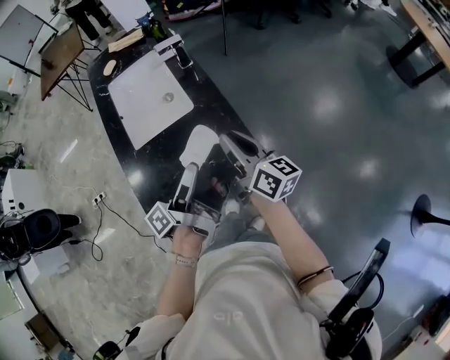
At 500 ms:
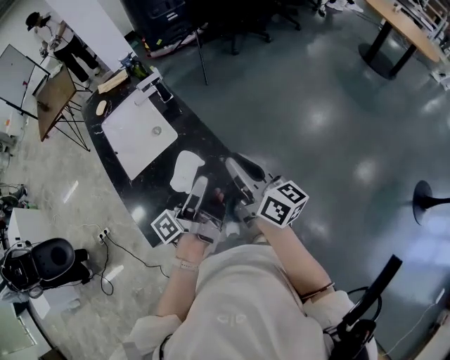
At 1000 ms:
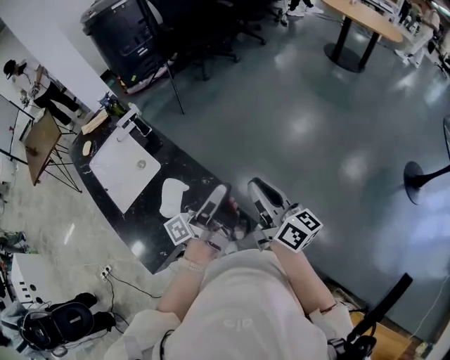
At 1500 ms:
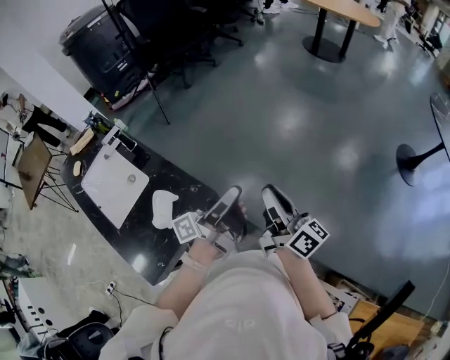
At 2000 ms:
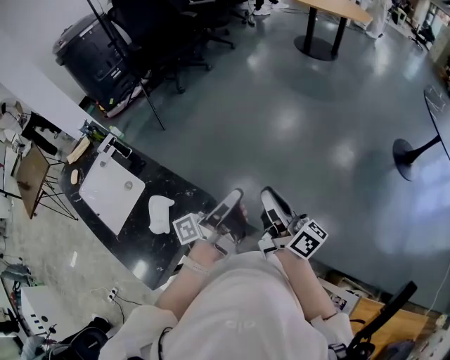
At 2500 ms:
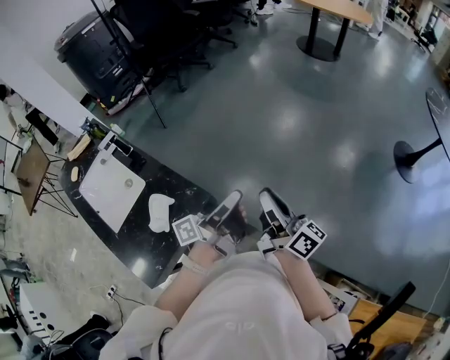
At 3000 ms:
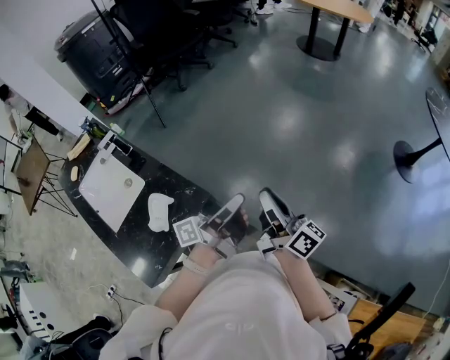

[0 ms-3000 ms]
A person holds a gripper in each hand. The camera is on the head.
0 ms to 1500 ms: The right gripper changes place by some 30 cm, and swivels roughly 40 degrees.

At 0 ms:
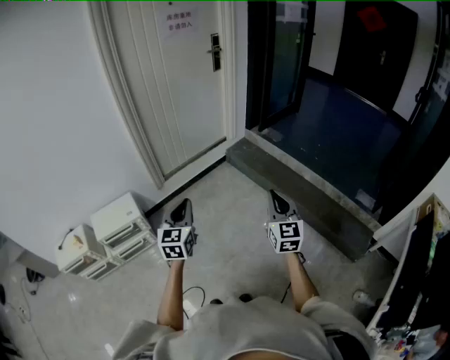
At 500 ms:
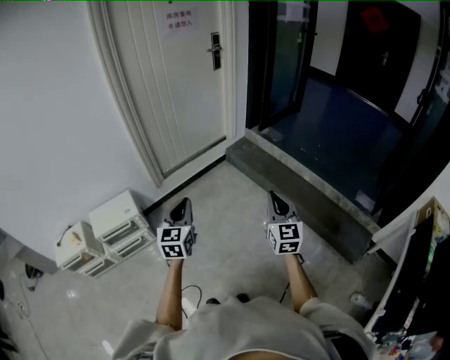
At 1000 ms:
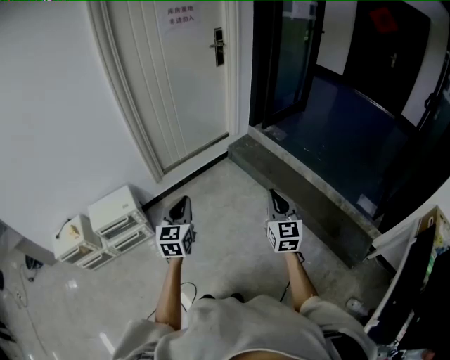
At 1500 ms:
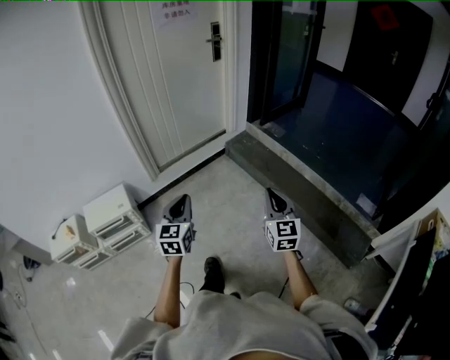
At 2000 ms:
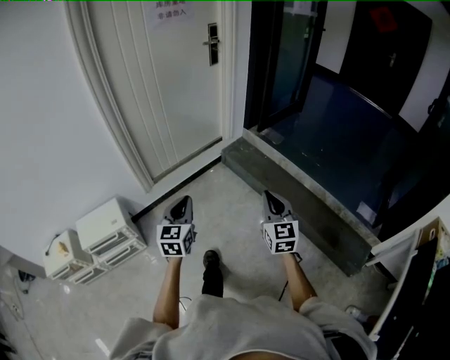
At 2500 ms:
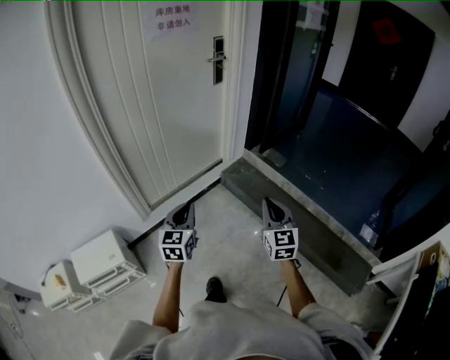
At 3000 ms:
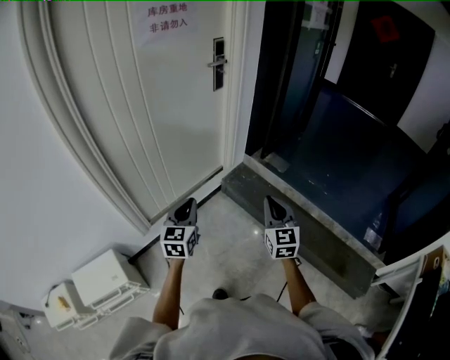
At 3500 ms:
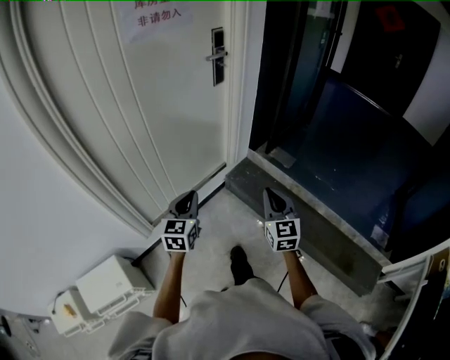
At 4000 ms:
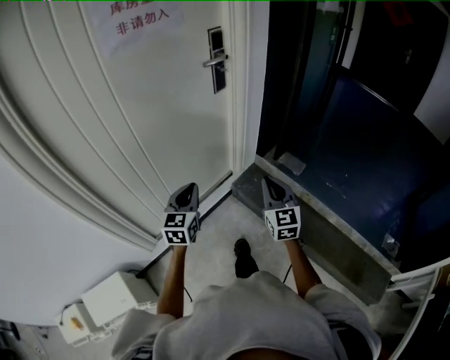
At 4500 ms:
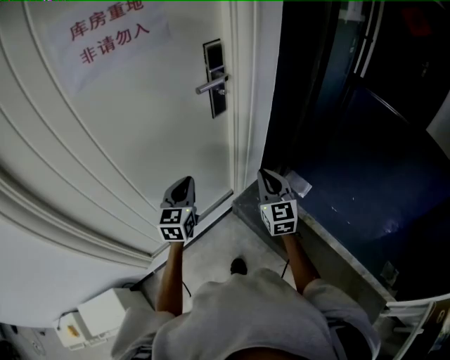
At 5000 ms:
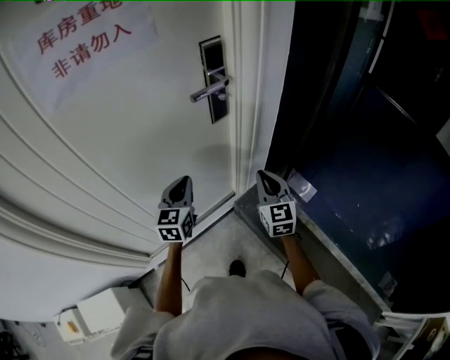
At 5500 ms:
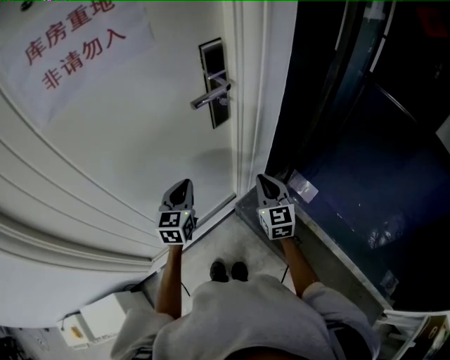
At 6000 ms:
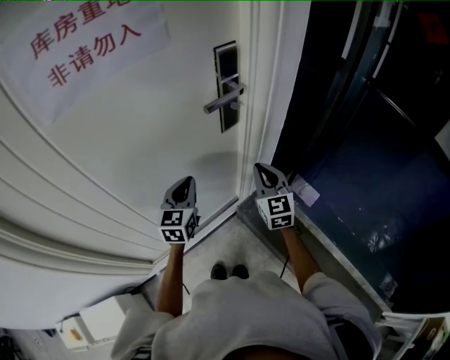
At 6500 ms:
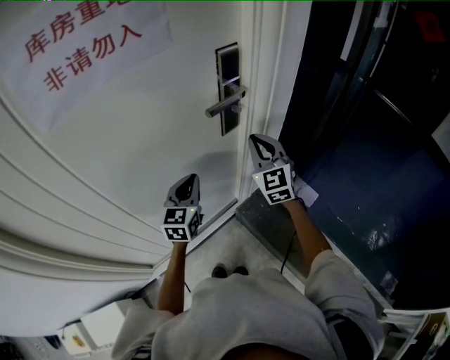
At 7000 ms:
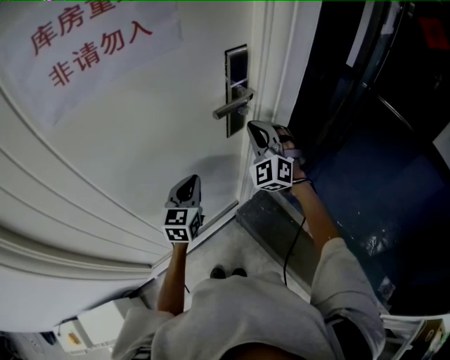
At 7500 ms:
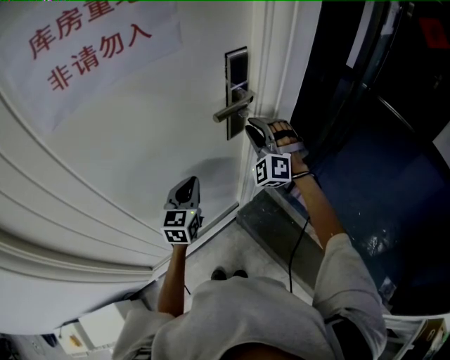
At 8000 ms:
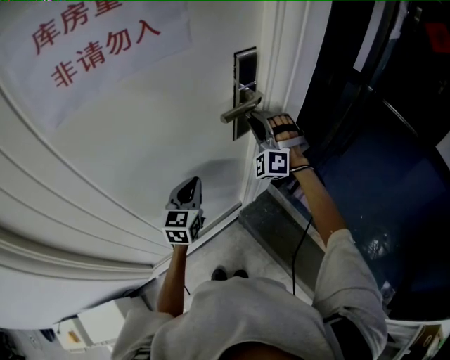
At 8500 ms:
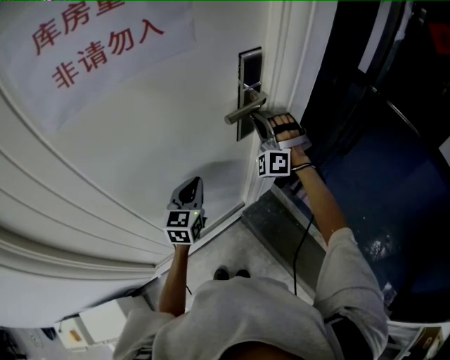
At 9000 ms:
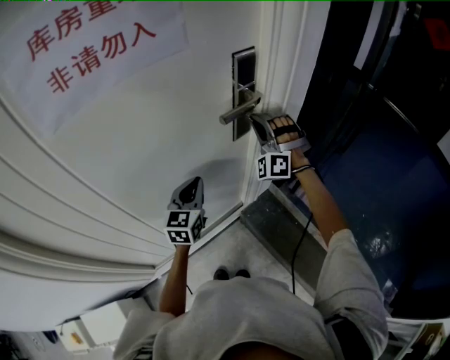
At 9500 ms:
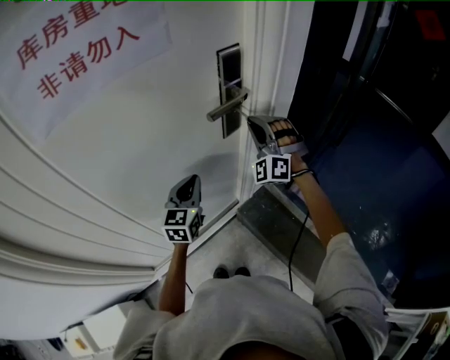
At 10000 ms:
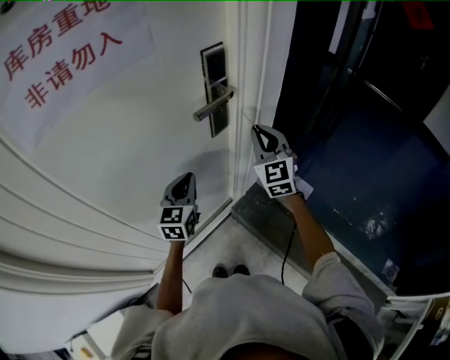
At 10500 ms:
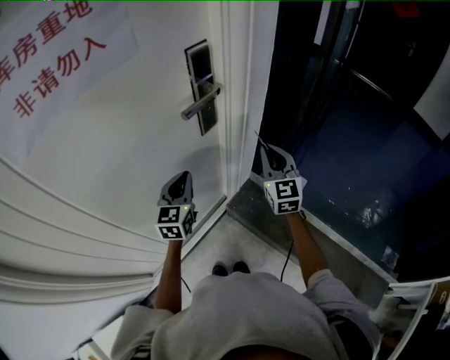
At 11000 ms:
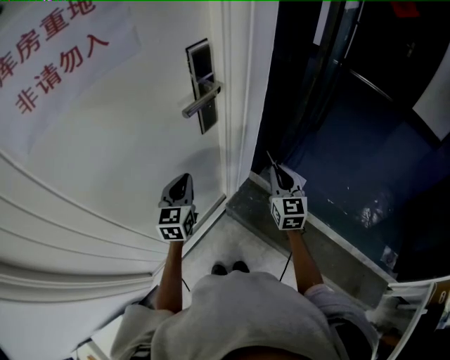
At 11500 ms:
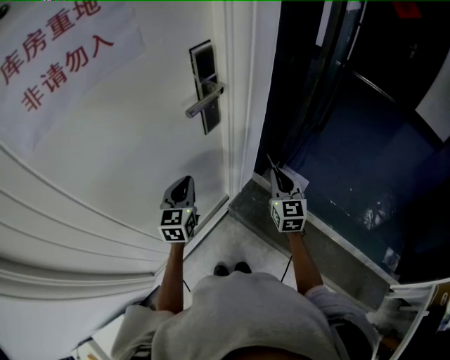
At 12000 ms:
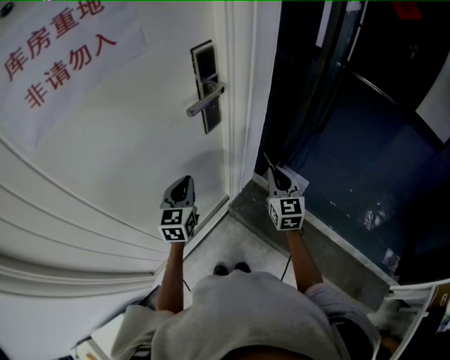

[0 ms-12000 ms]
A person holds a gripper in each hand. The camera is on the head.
0 ms to 2000 ms: Both grippers travel together forward, approximately 15 cm.
2000 ms to 4000 ms: The two grippers travel together, forward, some 60 cm.
4000 ms to 6000 ms: Both grippers move forward, some 35 cm.
6000 ms to 8000 ms: The right gripper is displaced forward and upward by about 15 cm, rolls counterclockwise, seen from behind, by roughly 70 degrees, and opens.
8000 ms to 10000 ms: The right gripper heads to the right and backward, covering some 10 cm, rolls clockwise, seen from behind, by about 60 degrees, and closes its fingers.
10000 ms to 12000 ms: The right gripper goes approximately 15 cm downward, backward and to the right, and rotates roughly 20 degrees.

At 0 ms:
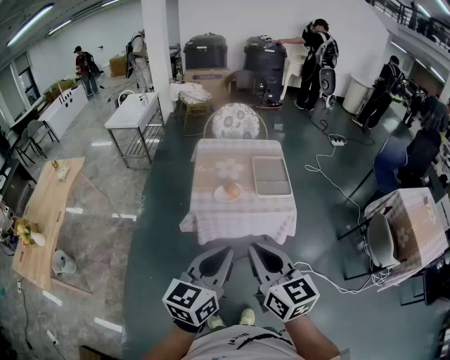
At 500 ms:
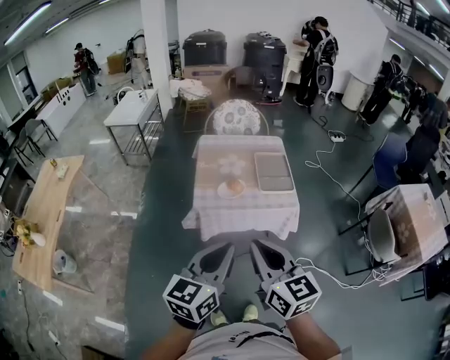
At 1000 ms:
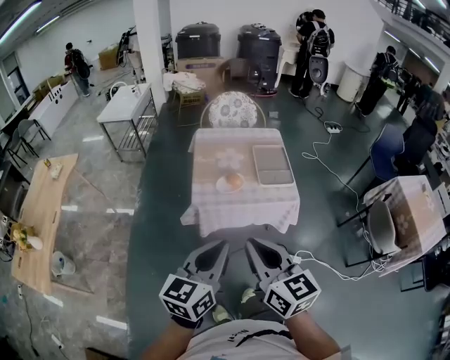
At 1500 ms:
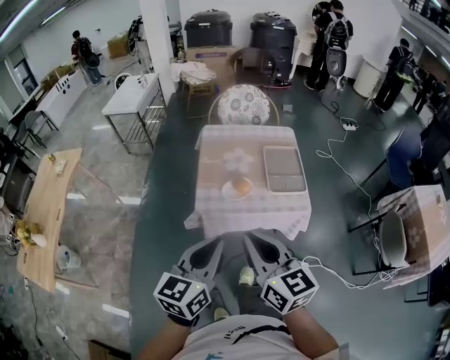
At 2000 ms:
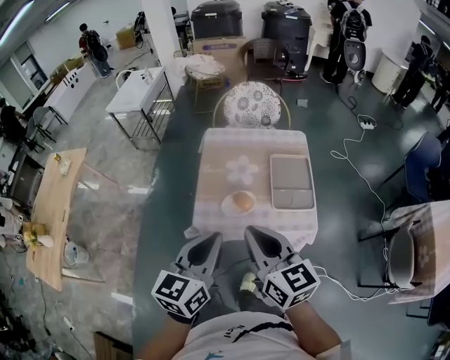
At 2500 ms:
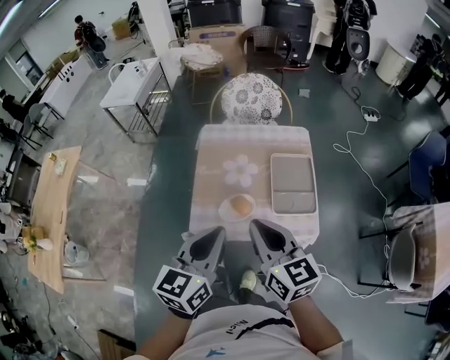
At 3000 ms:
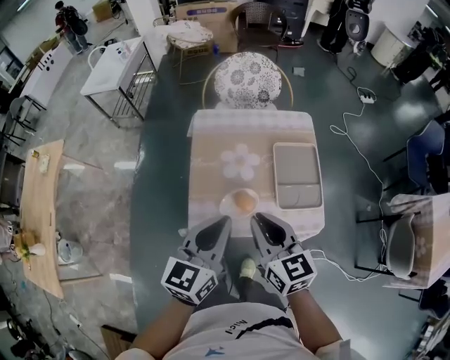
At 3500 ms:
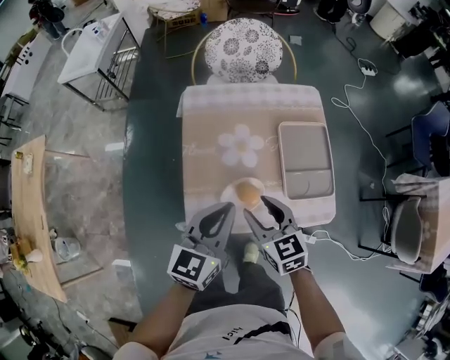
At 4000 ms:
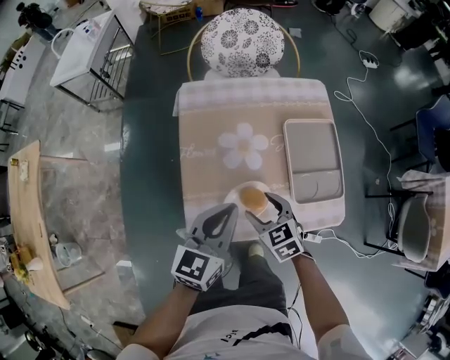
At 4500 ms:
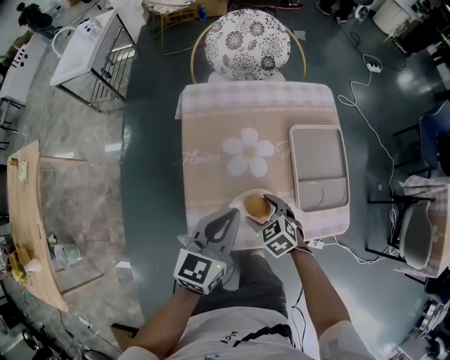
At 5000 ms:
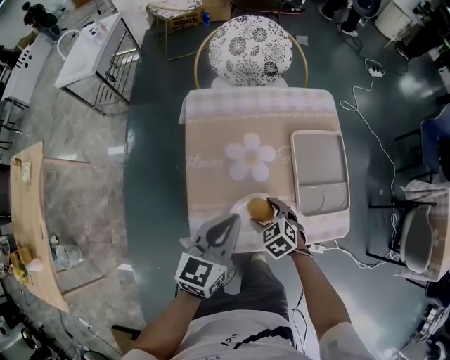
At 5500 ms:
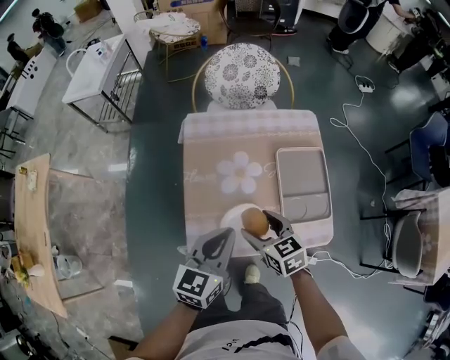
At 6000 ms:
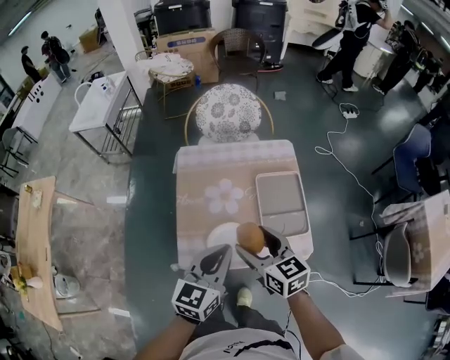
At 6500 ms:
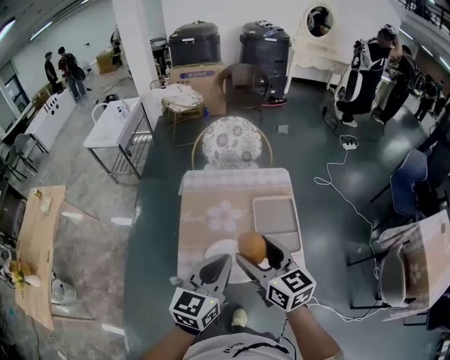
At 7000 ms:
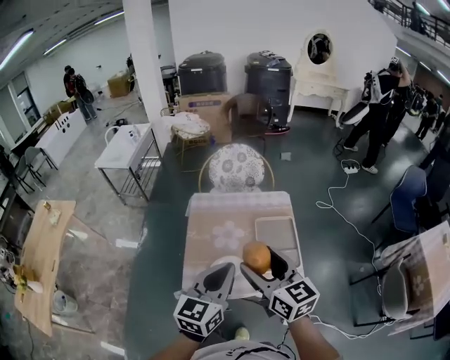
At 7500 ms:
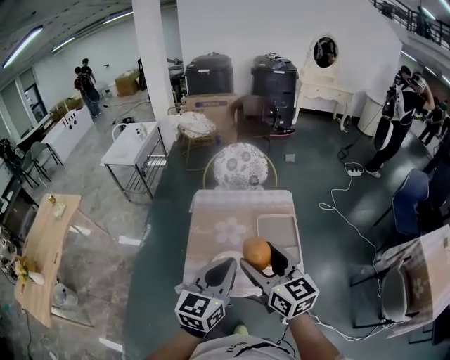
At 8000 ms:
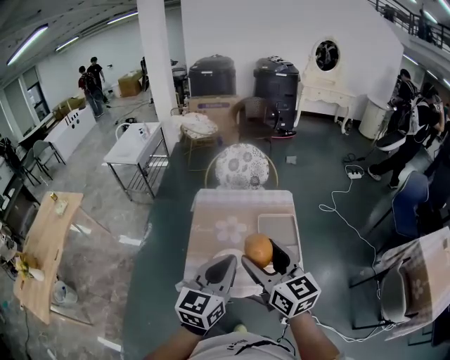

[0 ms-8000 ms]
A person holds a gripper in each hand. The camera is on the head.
0 ms to 2000 ms: The grippers both shift forward by about 25 cm.
2000 ms to 4000 ms: The grippers both shift downward and forward by approximately 35 cm. The right gripper tips its fingers downward by some 40 degrees, and opens its fingers.
4000 ms to 6000 ms: The right gripper moves upward, some 20 cm, and rotates roughly 30 degrees. The left gripper moves upward, backward and to the right, about 15 cm.
6000 ms to 8000 ms: Both grippers travel together upward and backward, some 20 cm. The right gripper rotates roughly 20 degrees.

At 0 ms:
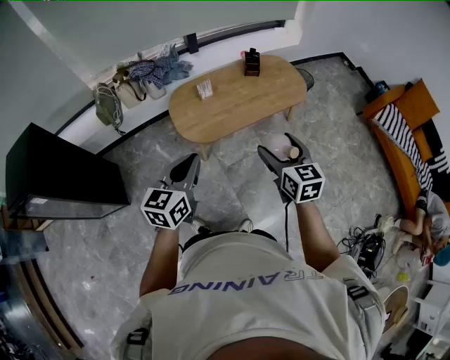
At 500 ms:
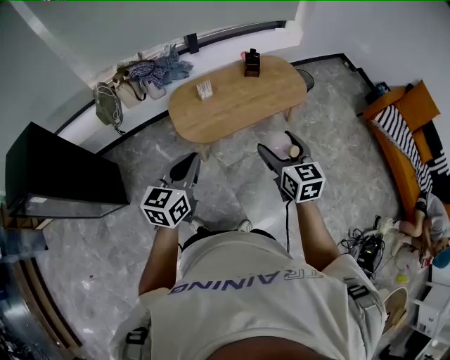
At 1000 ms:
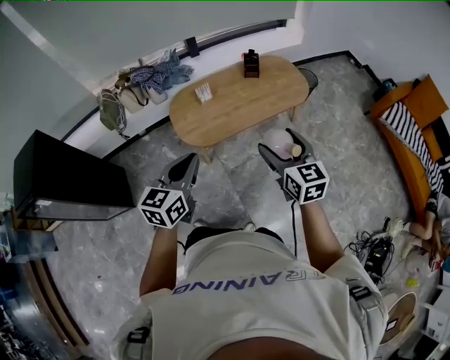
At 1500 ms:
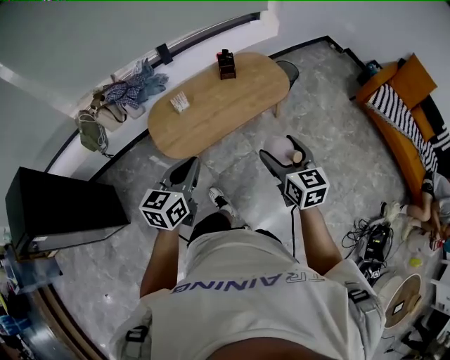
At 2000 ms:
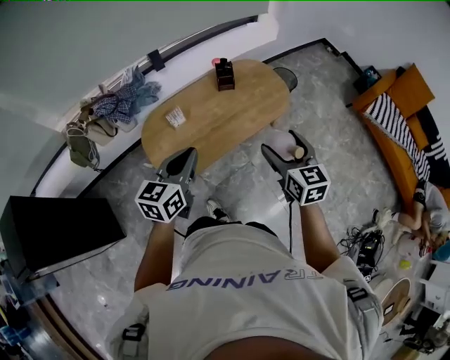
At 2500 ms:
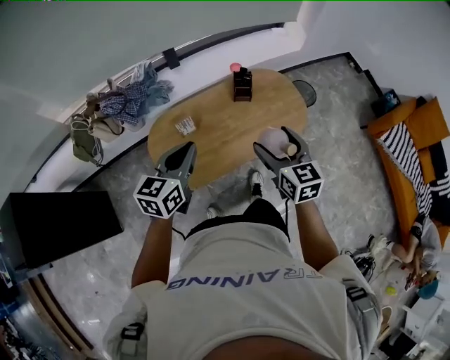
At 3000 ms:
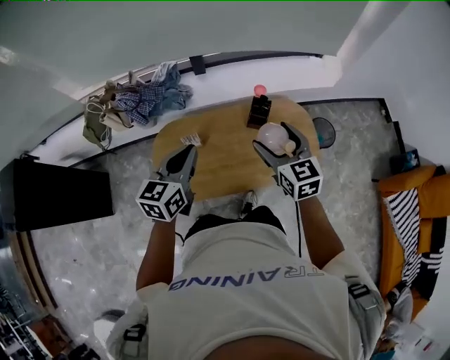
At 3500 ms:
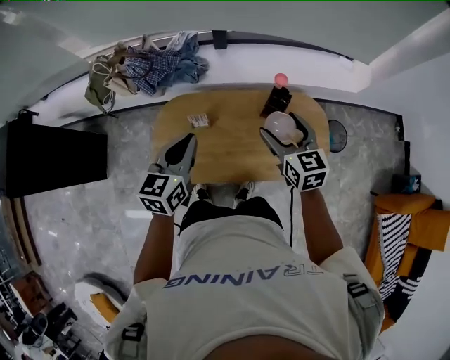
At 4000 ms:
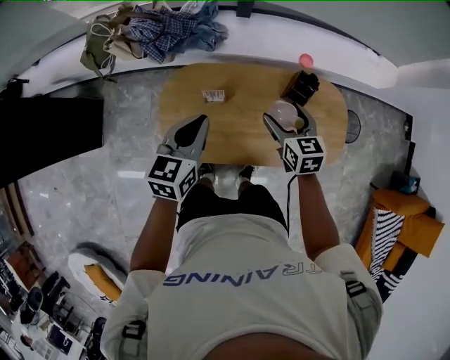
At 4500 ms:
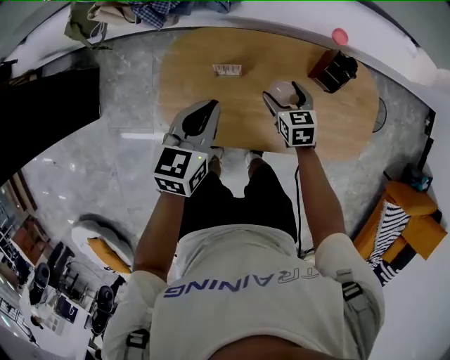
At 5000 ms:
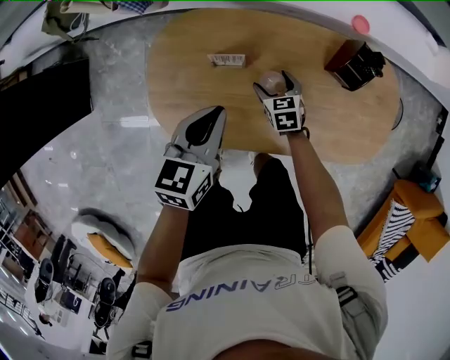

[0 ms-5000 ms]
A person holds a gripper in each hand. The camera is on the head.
0 ms to 2500 ms: The two grippers go about 35 cm forward.
2500 ms to 5000 ms: The right gripper shifts about 50 cm downward, and tilts its fingers approximately 40 degrees downward. Meanwhile the left gripper travels downward by roughly 30 cm, and turns by roughly 40 degrees.
